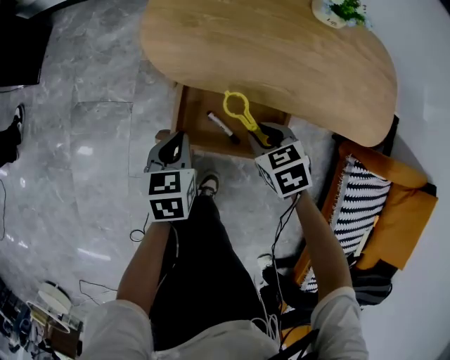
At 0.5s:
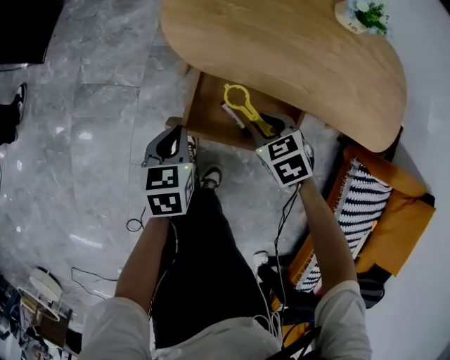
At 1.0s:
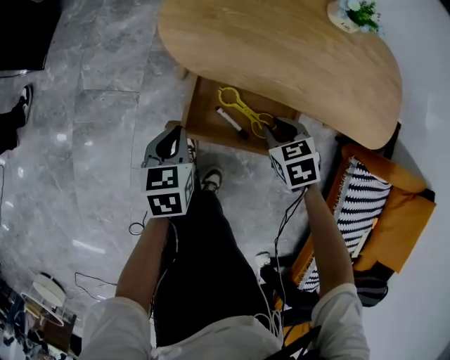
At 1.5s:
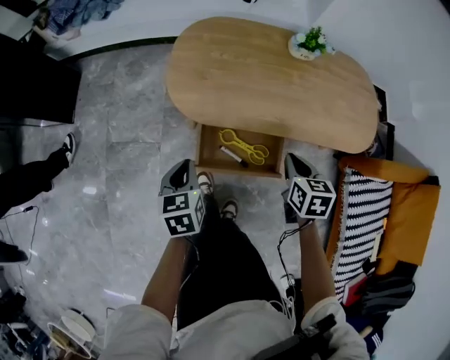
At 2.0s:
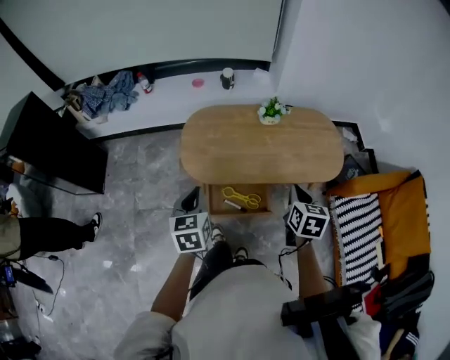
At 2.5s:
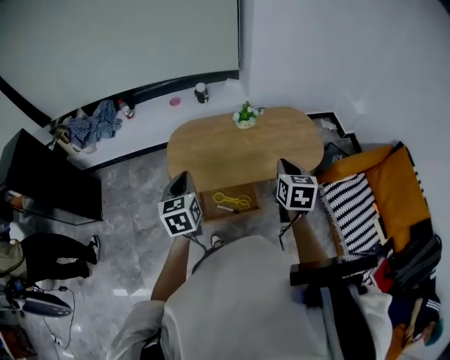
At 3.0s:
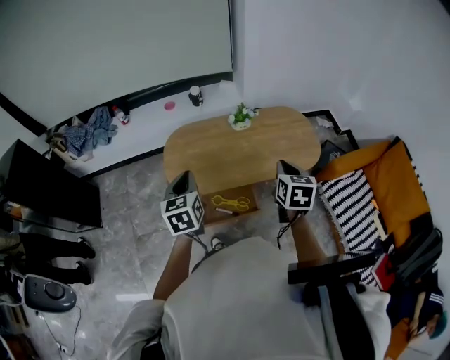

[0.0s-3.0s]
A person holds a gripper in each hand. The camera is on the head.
0.0s to 1.5s: The right gripper shifts about 15 cm upward and to the right, rotates about 40 degrees, and closes its fingers, while the left gripper travels upward by about 15 cm.
1.5s to 3.0s: The grippers both shift upward by roughly 30 cm. The left gripper turns by some 20 degrees. The right gripper changes its angle by about 20 degrees.

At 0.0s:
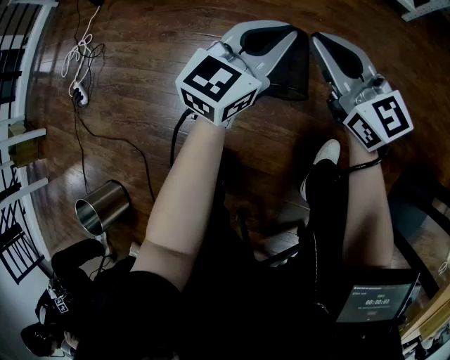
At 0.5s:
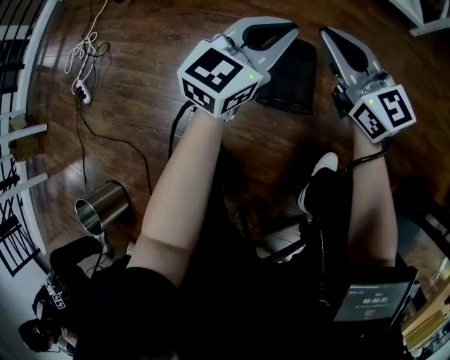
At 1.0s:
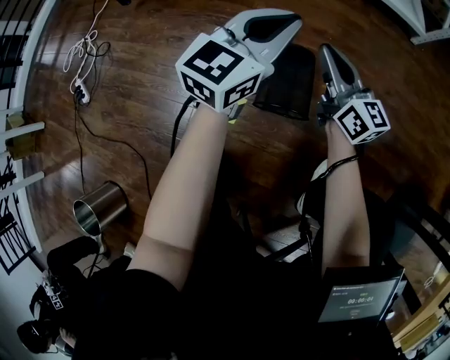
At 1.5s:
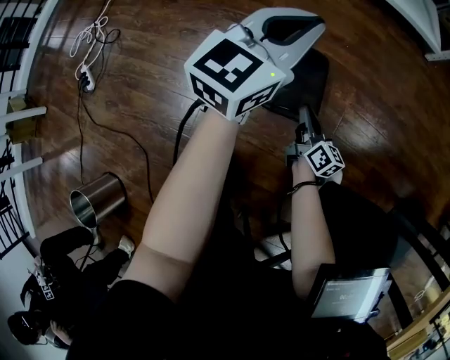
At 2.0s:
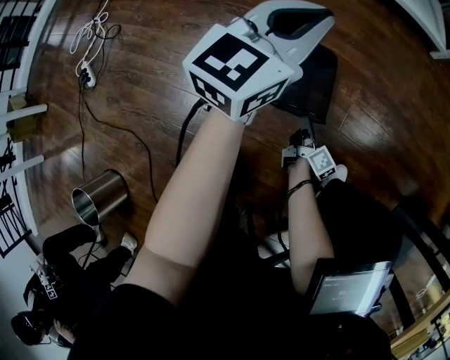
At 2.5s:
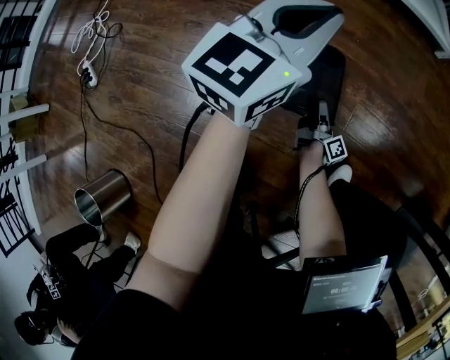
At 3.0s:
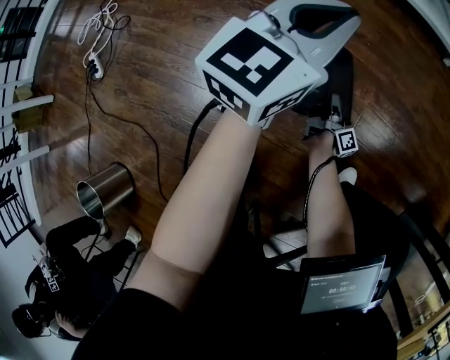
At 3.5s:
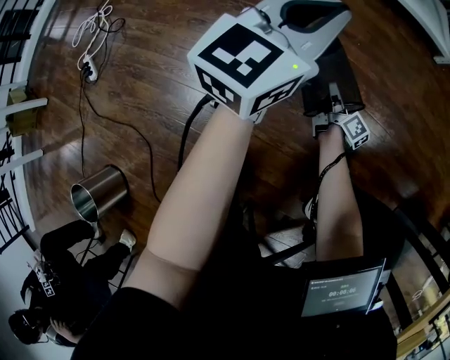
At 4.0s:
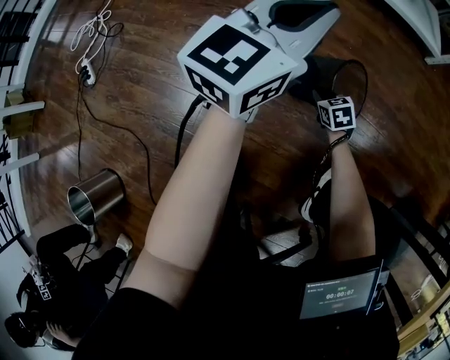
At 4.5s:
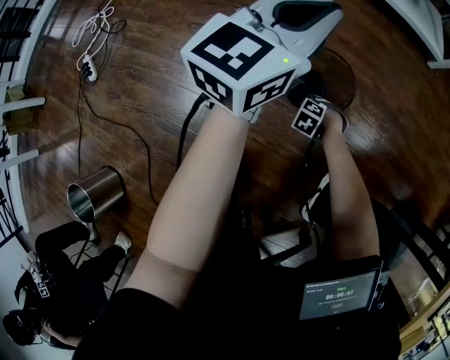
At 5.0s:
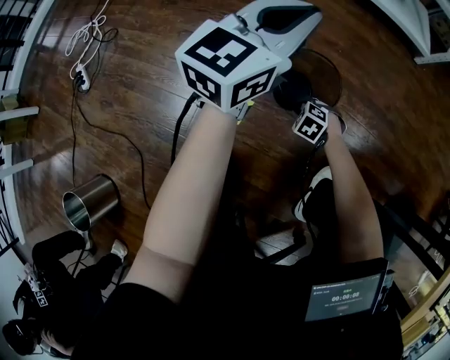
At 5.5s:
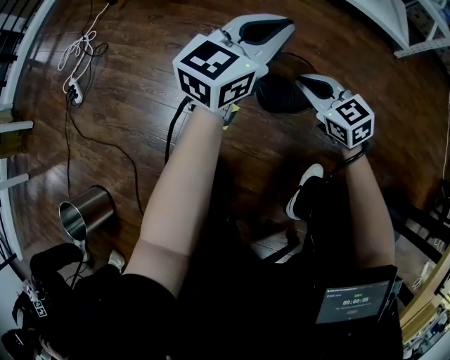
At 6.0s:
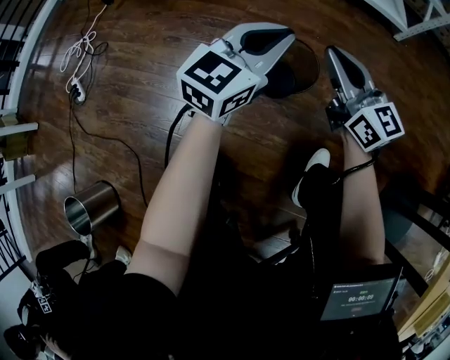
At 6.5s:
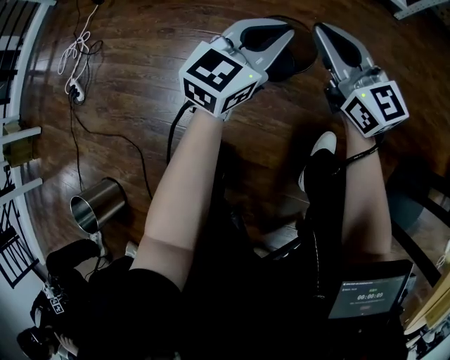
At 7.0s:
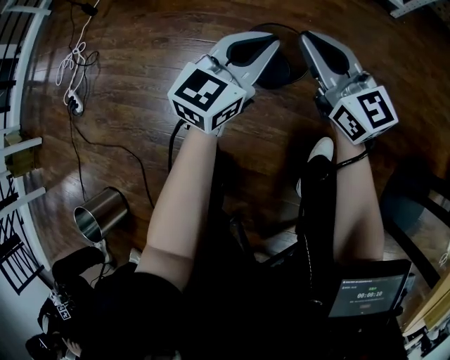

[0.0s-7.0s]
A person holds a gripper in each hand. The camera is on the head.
0.0s to 2.0s: The left gripper goes approximately 10 cm forward and to the left; the right gripper travels downward by roughly 35 cm, and rolls clockwise, seen from behind, by roughly 70 degrees.
2.0s to 3.5s: The right gripper heads forward, covering some 10 cm, and opens and closes again.
3.5s to 5.0s: The right gripper ends up about 15 cm from where it was, and tips its fingers downward by some 60 degrees.
5.0s to 7.0s: The left gripper changes place by approximately 15 cm. Meanwhile the right gripper travels upward by roughly 35 cm, and angles its fingers upward, by about 70 degrees.

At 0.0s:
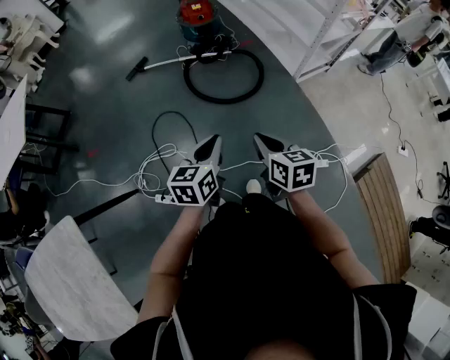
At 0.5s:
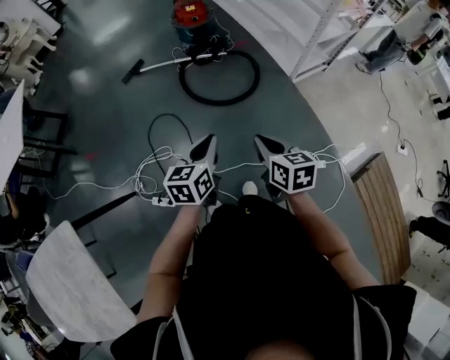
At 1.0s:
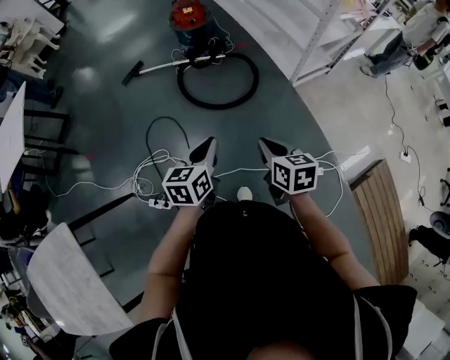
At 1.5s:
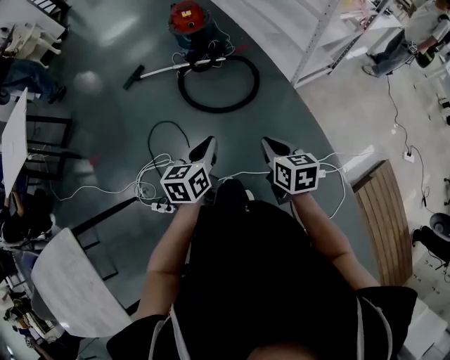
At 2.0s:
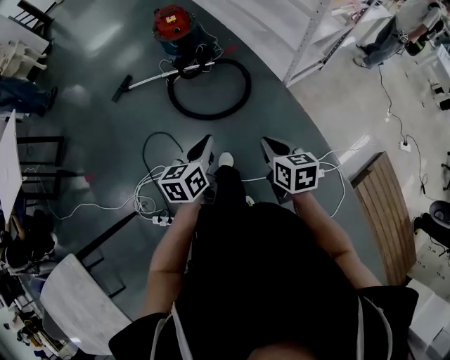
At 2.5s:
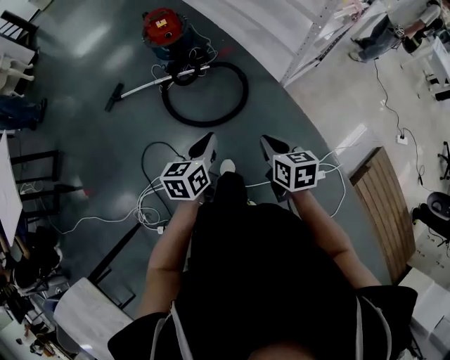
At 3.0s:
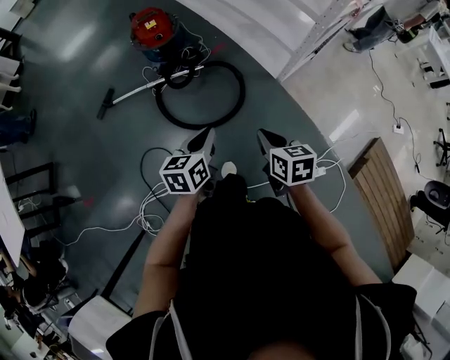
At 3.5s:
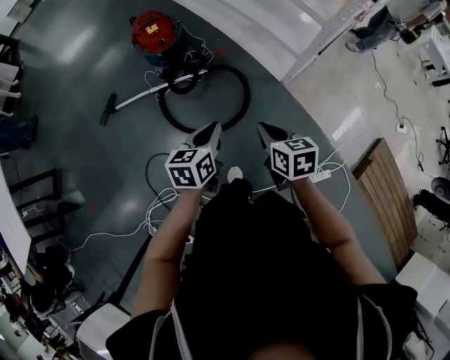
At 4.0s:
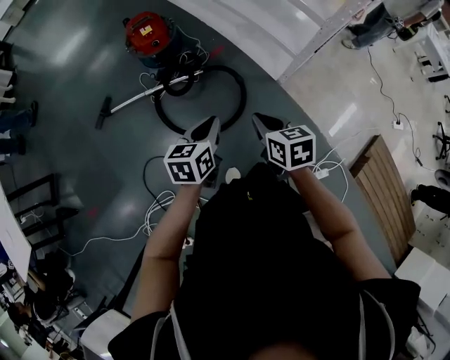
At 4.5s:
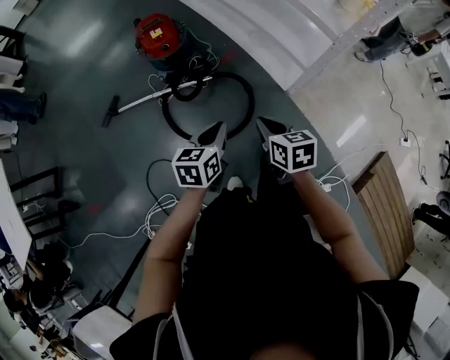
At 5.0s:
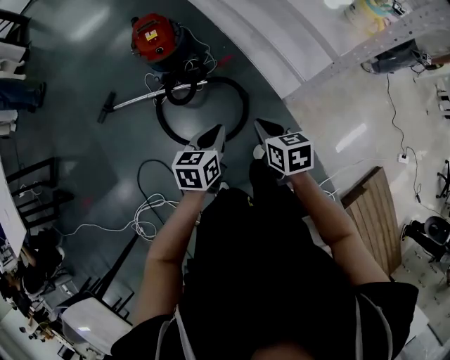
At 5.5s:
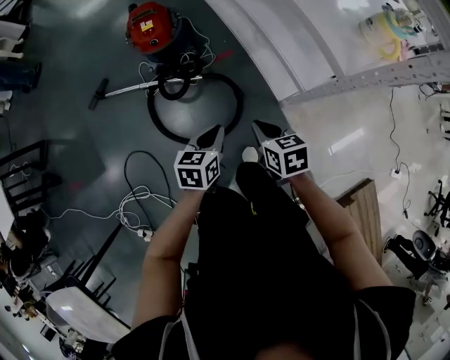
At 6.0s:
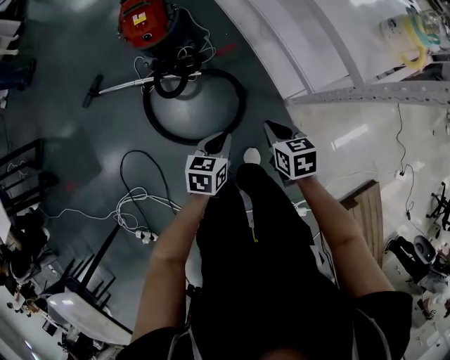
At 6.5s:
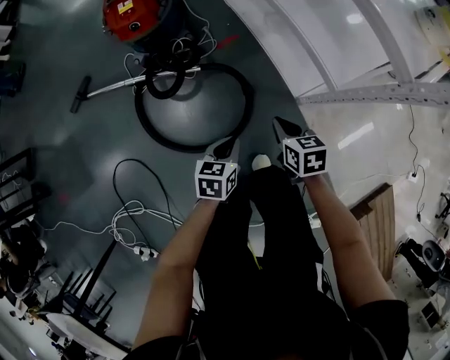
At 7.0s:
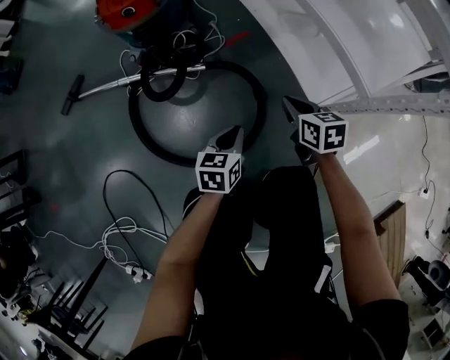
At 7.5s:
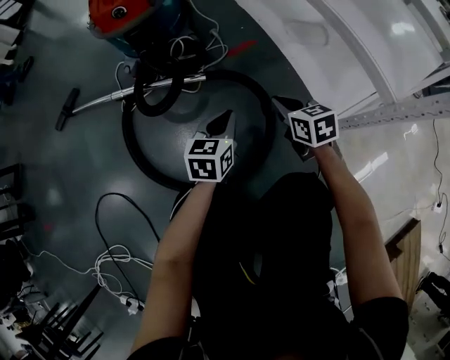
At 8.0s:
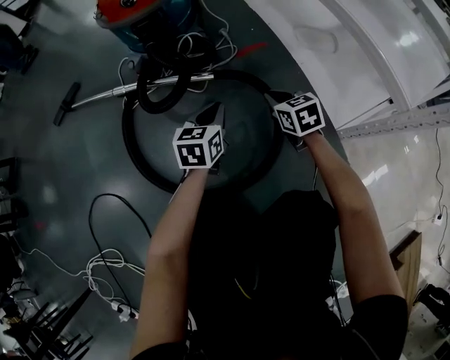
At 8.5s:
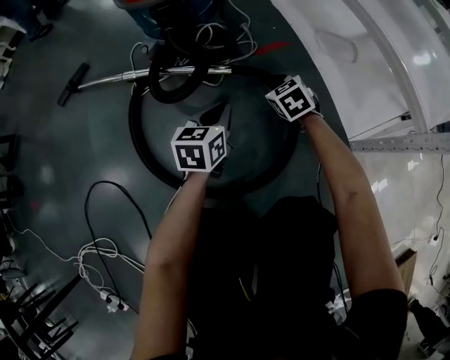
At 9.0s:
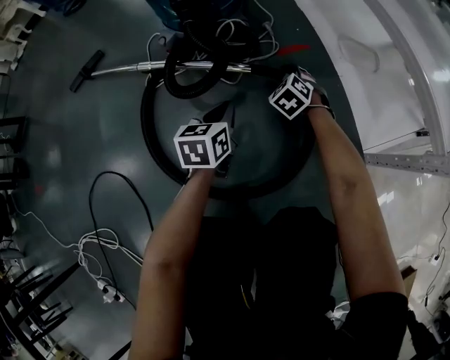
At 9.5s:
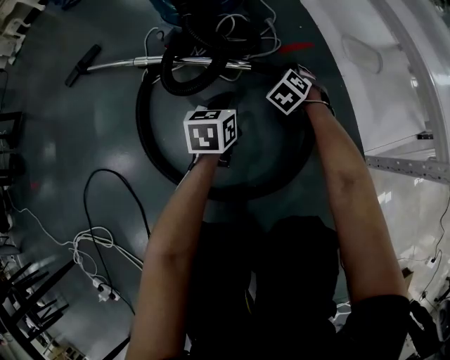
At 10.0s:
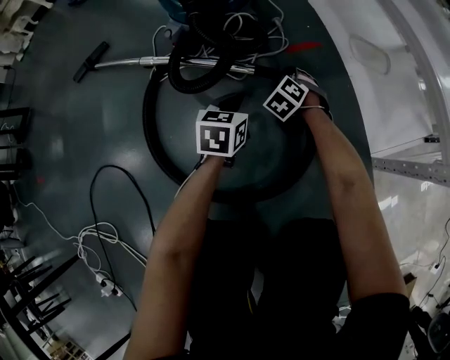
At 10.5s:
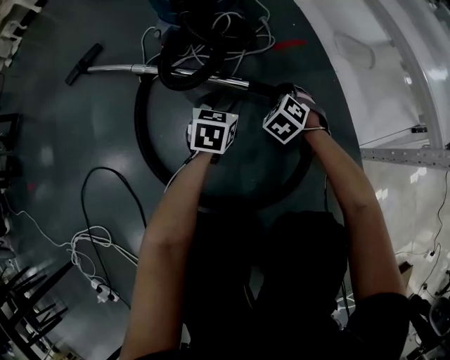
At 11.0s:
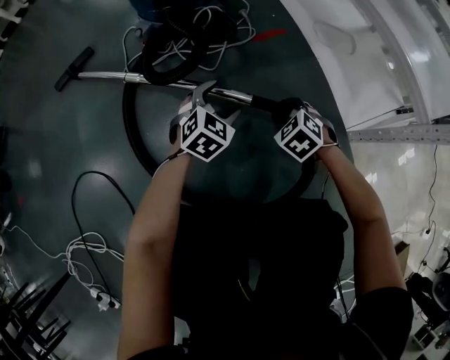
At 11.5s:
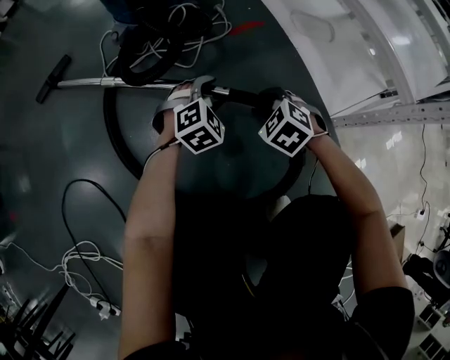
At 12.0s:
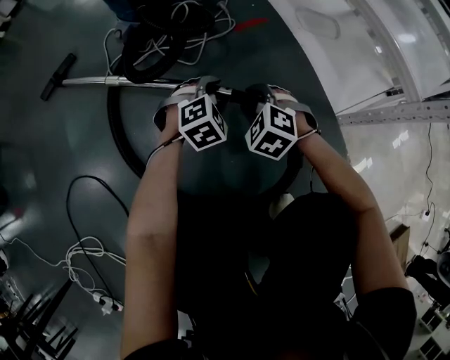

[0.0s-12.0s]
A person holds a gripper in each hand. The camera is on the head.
0.0s to 2.0s: The left gripper heads forward and to the right, covering about 20 cm, while the right gripper heads to the right and forward, covering some 20 cm.
2.0s to 4.0s: Both grippers move forward, roughly 25 cm.
4.0s to 6.0s: The left gripper is displaced downward, forward and to the right by some 30 cm. The right gripper moves forward, downward and to the right, some 30 cm.
6.0s to 8.0s: The two grippers go roughly 50 cm downward and forward.
8.0s to 10.0s: The right gripper goes roughly 15 cm downward, forward and to the left, rolls counterclockwise, seen from behind, by roughly 50 degrees, and opens its fingers. Meanwhile the left gripper is displaced downward by some 5 cm.
10.0s to 12.0s: The left gripper heads to the right and backward, covering roughly 10 cm, rotates around the line of its fingers by about 60 degrees, clockwise from behind, and opens up. The right gripper shifts roughly 20 cm backward and upward.

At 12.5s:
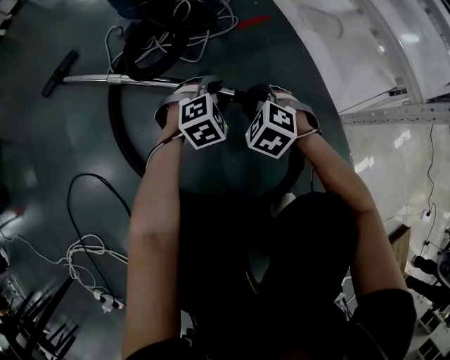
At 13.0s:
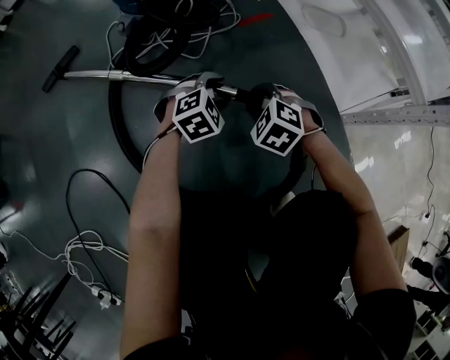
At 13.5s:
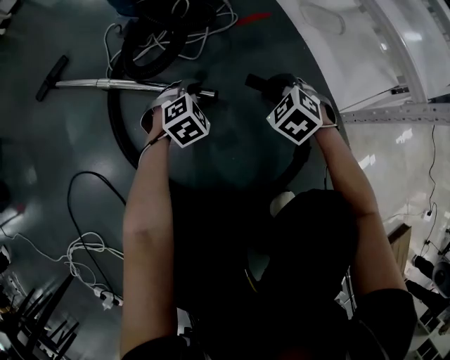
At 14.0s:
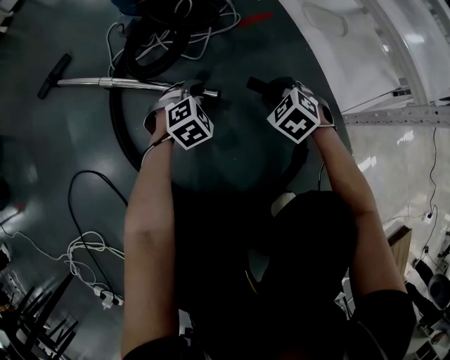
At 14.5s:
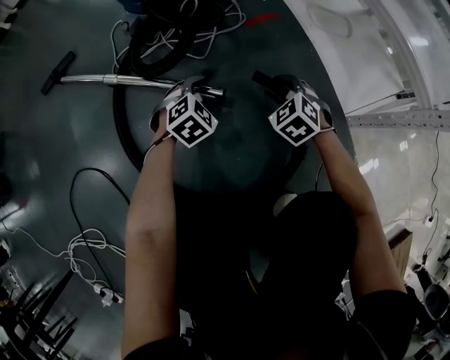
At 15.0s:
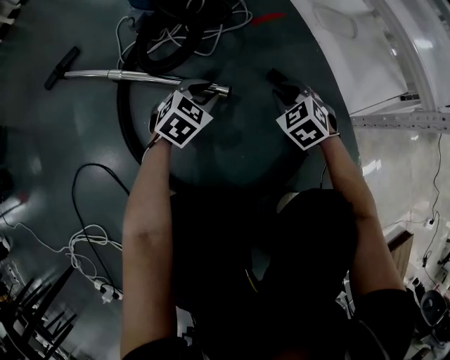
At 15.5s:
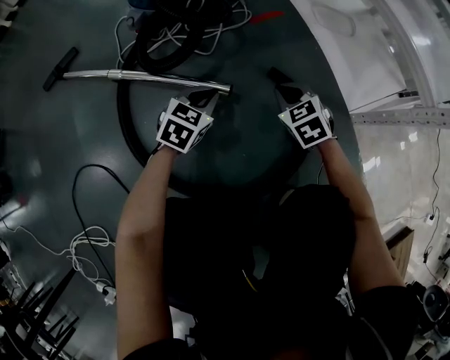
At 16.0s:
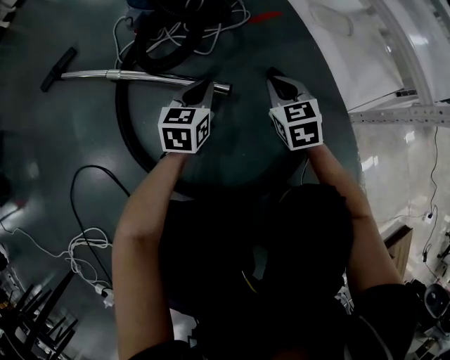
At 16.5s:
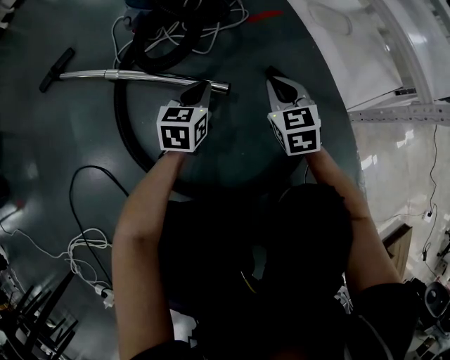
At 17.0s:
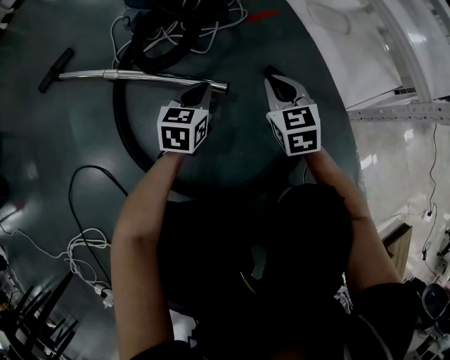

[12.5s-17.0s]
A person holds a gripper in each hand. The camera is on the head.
12.5s to 14.5s: The right gripper shifts by about 5 cm.
14.5s to 17.0s: The left gripper moves roughly 5 cm, rotates around the line of its fingers by some 40 degrees, counterclockwise from behind, and closes its fingers. The right gripper moves upward, some 5 cm, changes its angle by some 40 degrees, and closes up.
